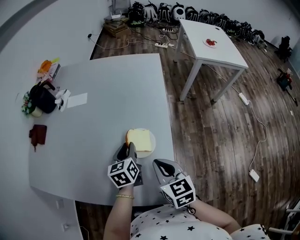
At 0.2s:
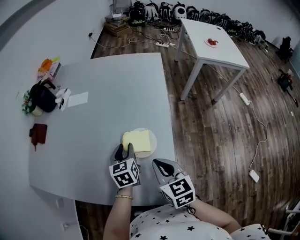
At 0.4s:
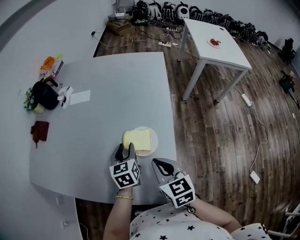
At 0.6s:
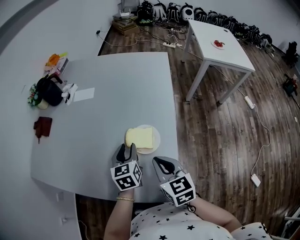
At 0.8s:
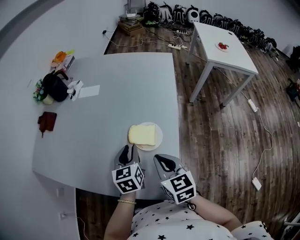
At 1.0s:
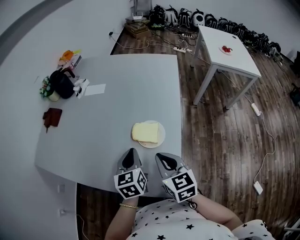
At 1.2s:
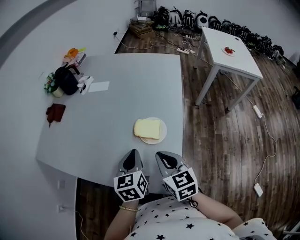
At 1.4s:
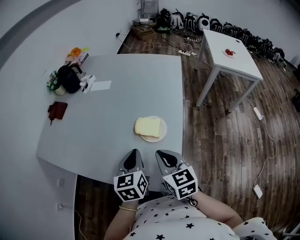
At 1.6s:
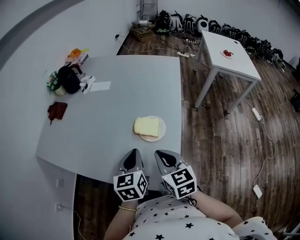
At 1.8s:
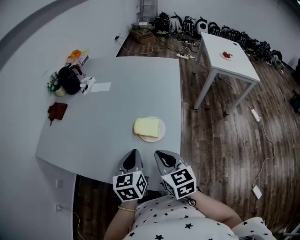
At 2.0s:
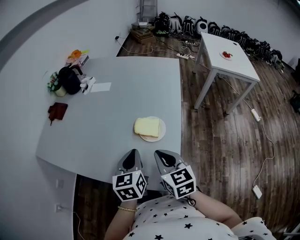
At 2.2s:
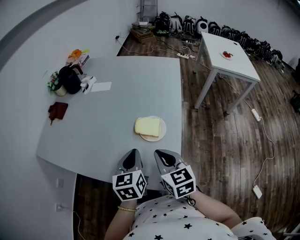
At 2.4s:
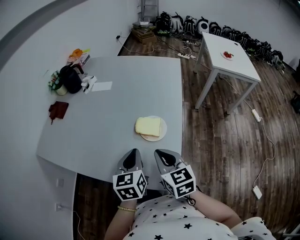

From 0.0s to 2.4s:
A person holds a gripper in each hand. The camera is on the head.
From 0.0s to 1.2s: The left gripper travels backward and upward by approximately 15 cm, and closes up.
From 1.2s to 2.4s: There are only small adjustments of the grippers.

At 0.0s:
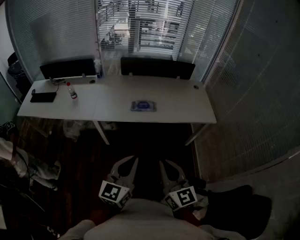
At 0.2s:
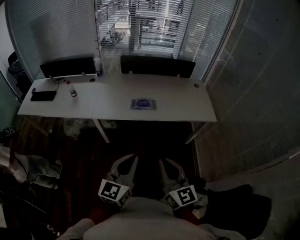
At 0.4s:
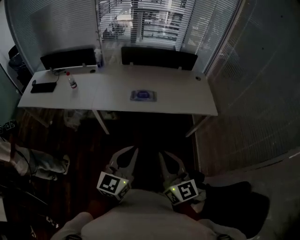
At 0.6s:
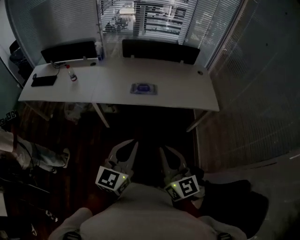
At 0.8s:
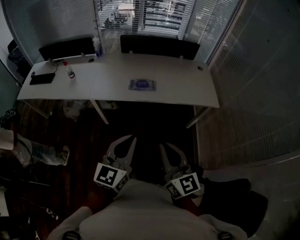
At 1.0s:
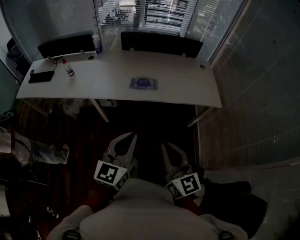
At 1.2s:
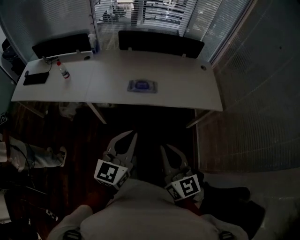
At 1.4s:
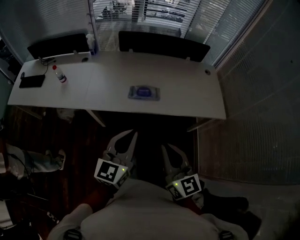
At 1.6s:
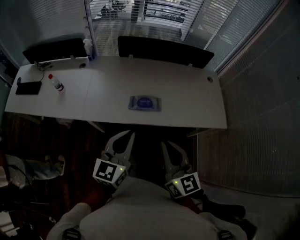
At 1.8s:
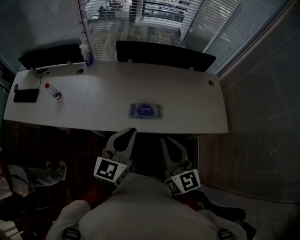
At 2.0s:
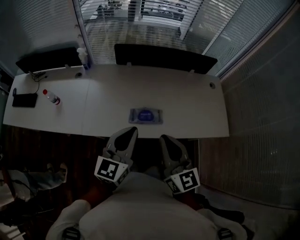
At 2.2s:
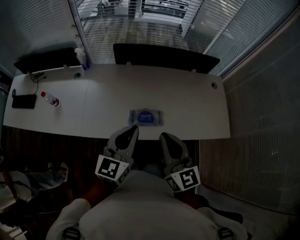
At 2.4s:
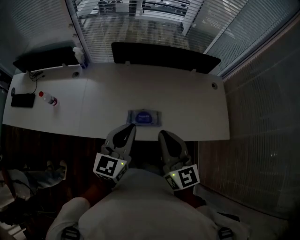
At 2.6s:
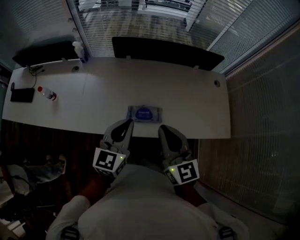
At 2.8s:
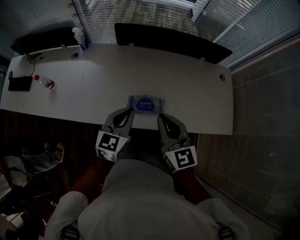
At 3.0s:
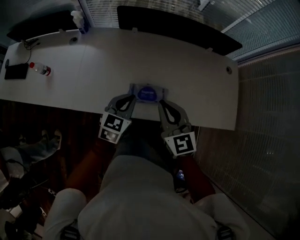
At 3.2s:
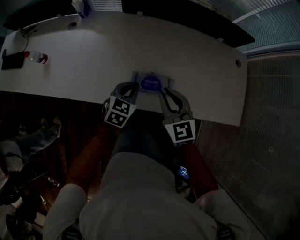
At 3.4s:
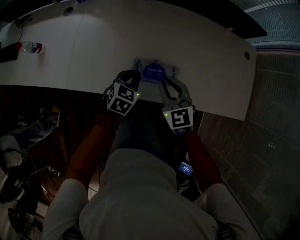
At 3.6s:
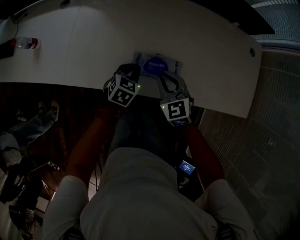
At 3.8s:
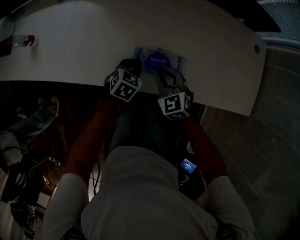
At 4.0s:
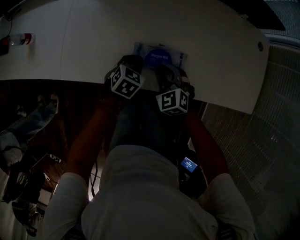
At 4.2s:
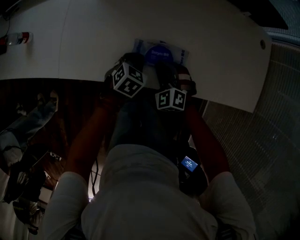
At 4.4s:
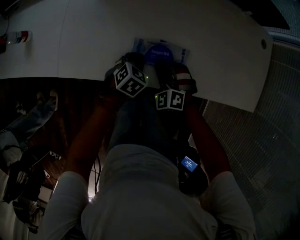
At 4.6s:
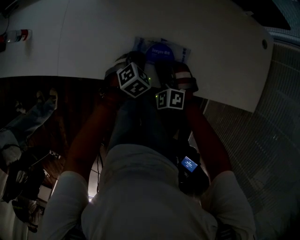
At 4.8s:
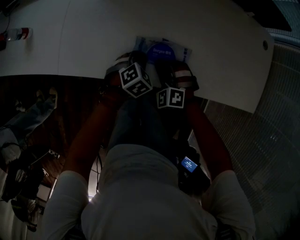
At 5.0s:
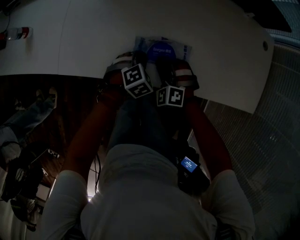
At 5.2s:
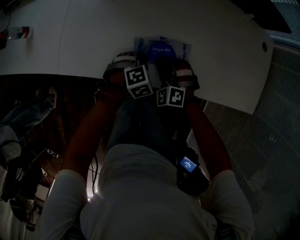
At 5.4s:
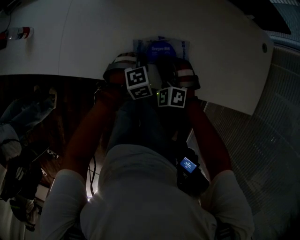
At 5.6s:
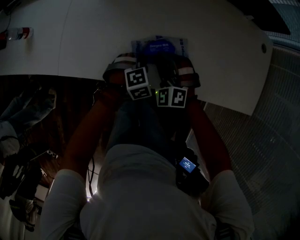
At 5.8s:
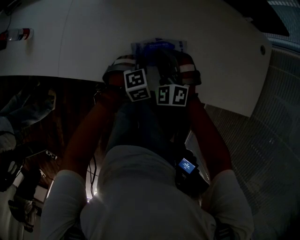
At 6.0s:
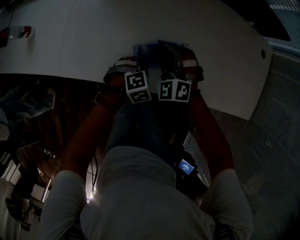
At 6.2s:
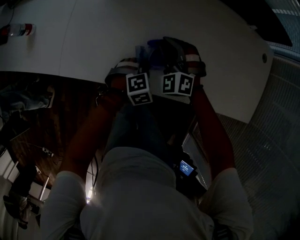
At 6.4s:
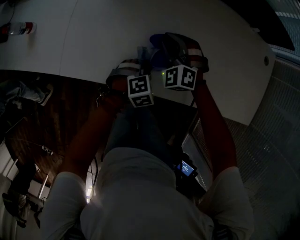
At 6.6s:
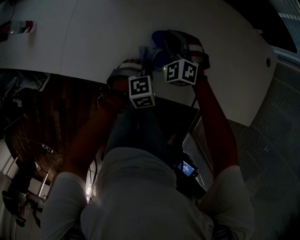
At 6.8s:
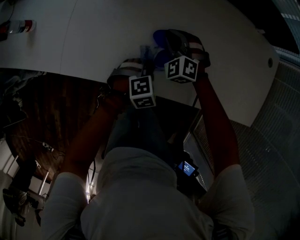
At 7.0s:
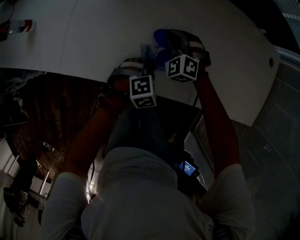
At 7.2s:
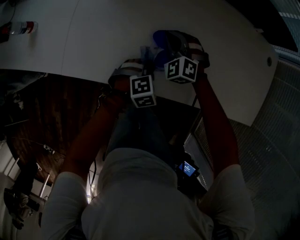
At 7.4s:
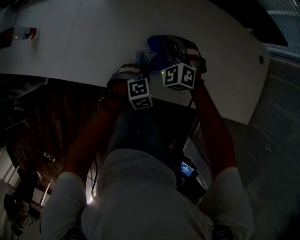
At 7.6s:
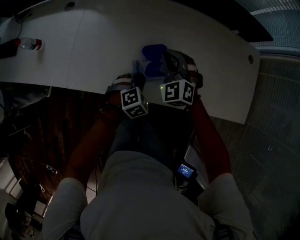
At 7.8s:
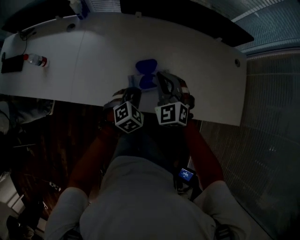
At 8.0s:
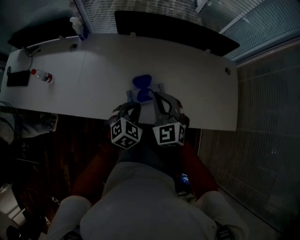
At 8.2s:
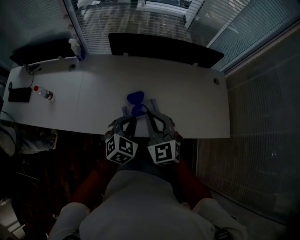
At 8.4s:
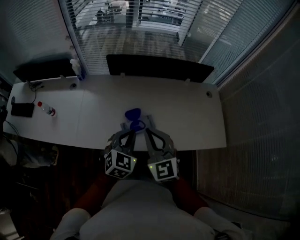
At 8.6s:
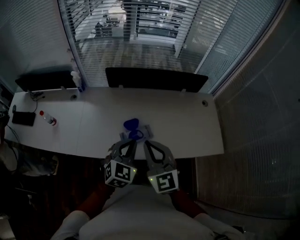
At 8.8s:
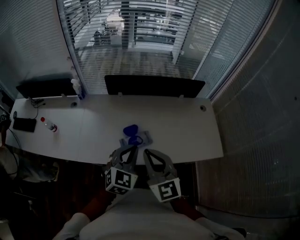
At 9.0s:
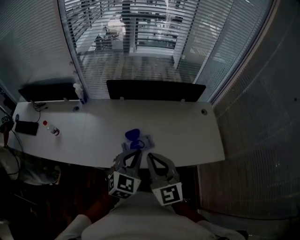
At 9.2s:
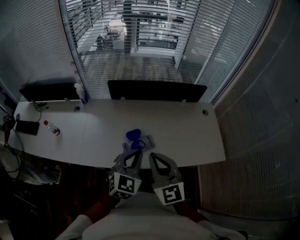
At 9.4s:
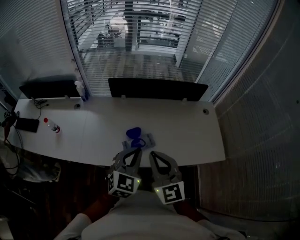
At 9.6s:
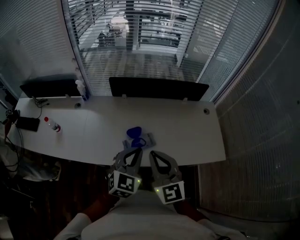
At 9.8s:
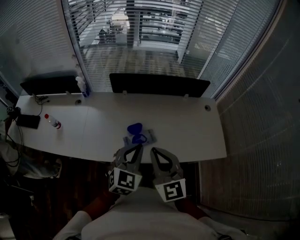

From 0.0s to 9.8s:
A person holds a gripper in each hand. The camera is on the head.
From 0.0s to 1.4s: The grippers both shift forward by roughly 20 cm.
From 1.4s to 2.8s: The two grippers go approximately 30 cm forward.
From 2.8s to 4.2s: The two grippers go about 35 cm downward. The left gripper tilts its fingers some 40 degrees downward, while the right gripper angles its fingers downward, by some 30 degrees.
From 4.2s to 5.6s: The left gripper turns by approximately 40 degrees.
From 5.6s to 7.0s: The right gripper is displaced forward and downward by about 10 cm.
From 7.0s to 8.4s: The right gripper travels upward and backward by roughly 40 cm, and rotates some 40 degrees, while the left gripper shifts about 35 cm upward, and angles its fingers upward, by some 30 degrees.
From 8.4s to 9.8s: Both grippers travel together upward, approximately 5 cm.

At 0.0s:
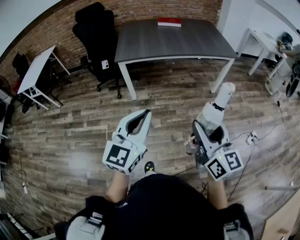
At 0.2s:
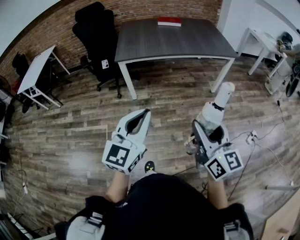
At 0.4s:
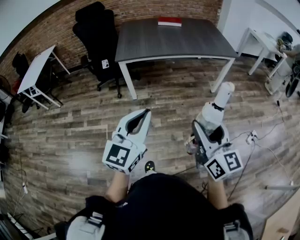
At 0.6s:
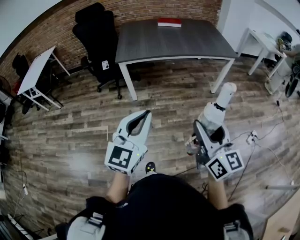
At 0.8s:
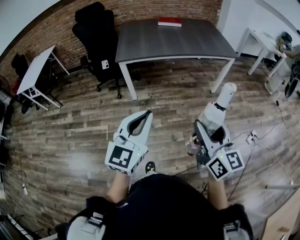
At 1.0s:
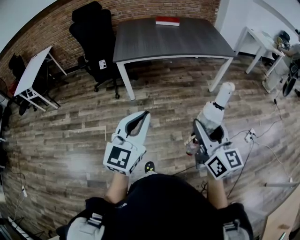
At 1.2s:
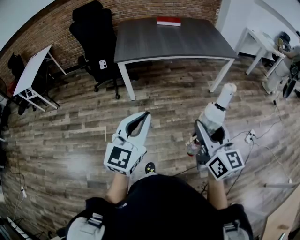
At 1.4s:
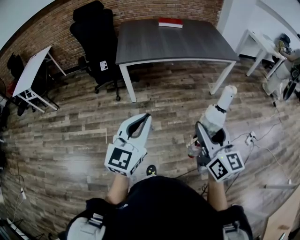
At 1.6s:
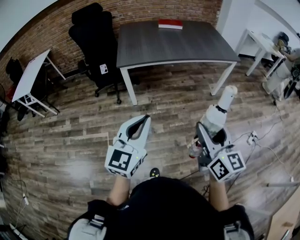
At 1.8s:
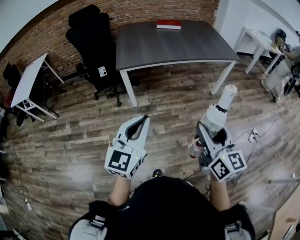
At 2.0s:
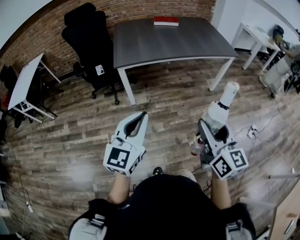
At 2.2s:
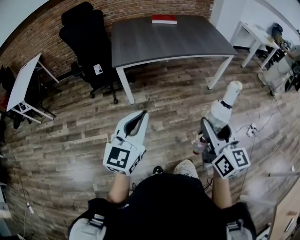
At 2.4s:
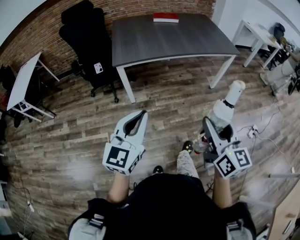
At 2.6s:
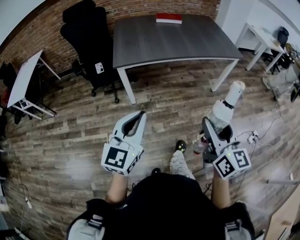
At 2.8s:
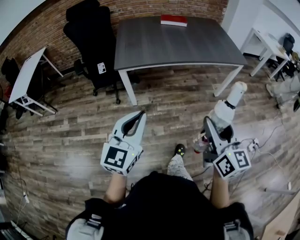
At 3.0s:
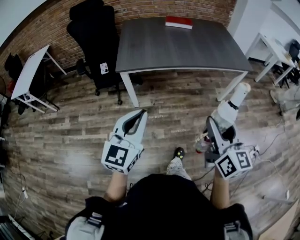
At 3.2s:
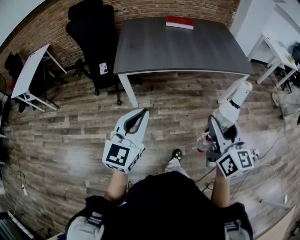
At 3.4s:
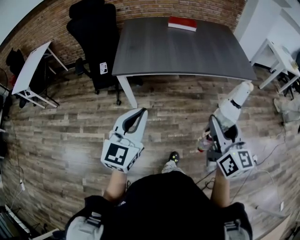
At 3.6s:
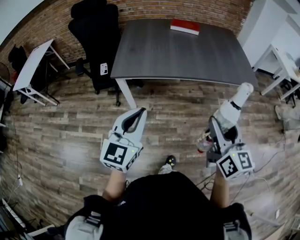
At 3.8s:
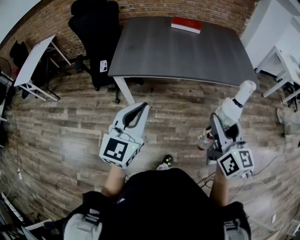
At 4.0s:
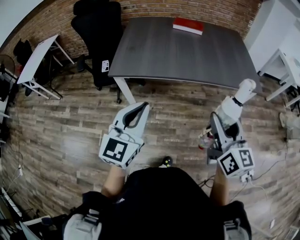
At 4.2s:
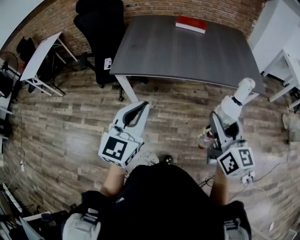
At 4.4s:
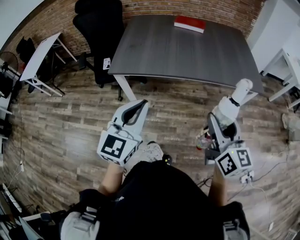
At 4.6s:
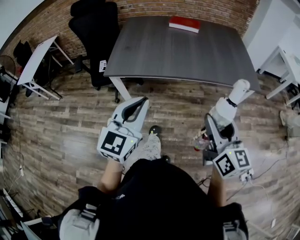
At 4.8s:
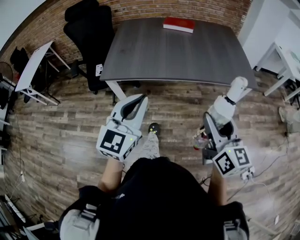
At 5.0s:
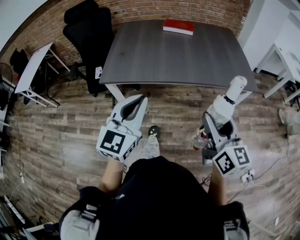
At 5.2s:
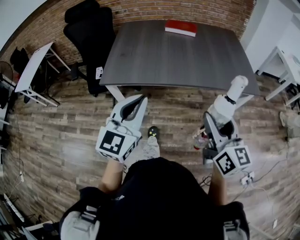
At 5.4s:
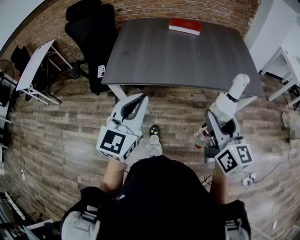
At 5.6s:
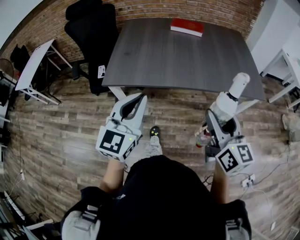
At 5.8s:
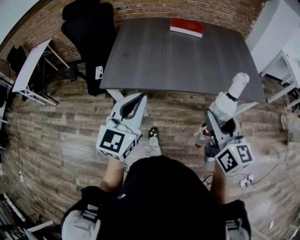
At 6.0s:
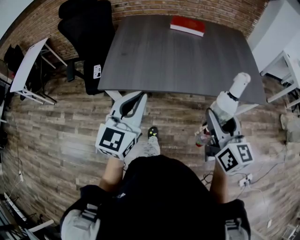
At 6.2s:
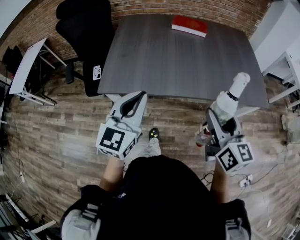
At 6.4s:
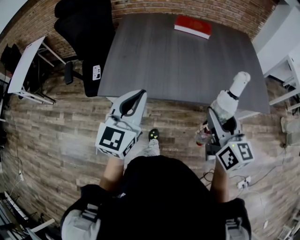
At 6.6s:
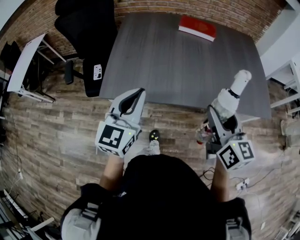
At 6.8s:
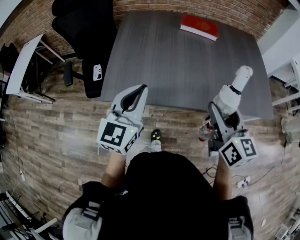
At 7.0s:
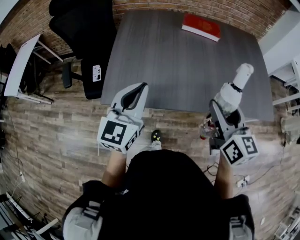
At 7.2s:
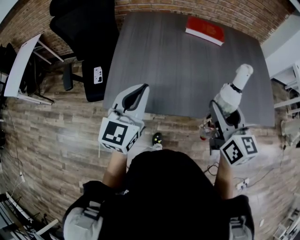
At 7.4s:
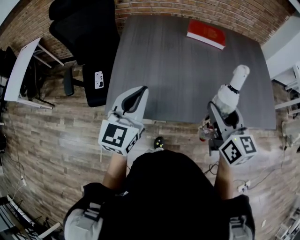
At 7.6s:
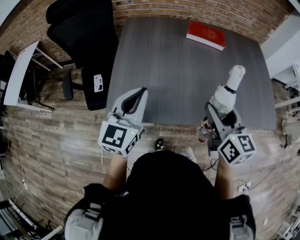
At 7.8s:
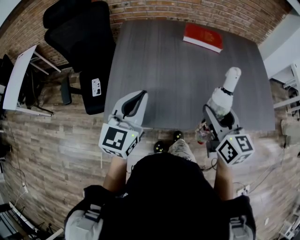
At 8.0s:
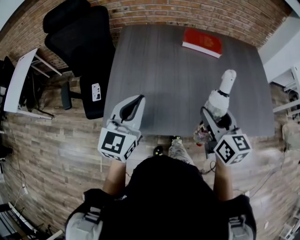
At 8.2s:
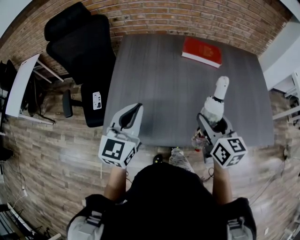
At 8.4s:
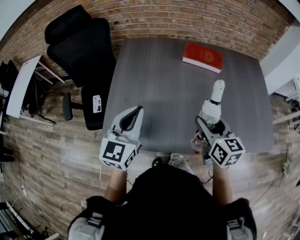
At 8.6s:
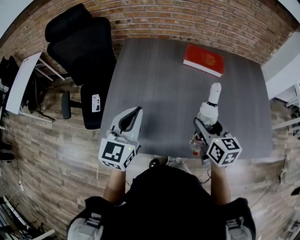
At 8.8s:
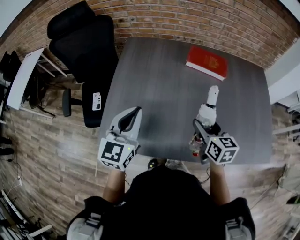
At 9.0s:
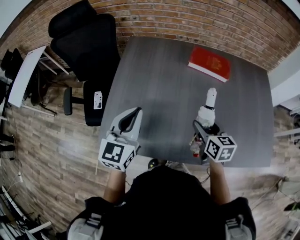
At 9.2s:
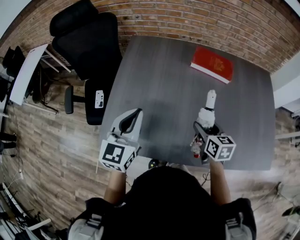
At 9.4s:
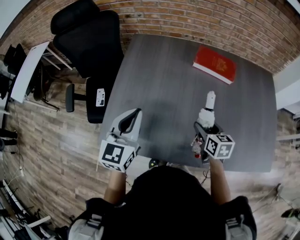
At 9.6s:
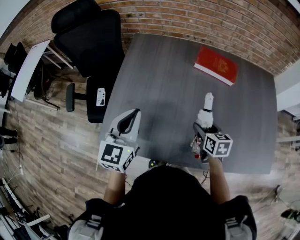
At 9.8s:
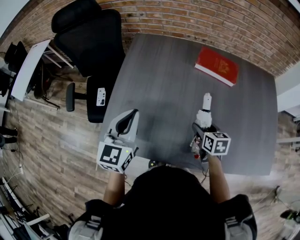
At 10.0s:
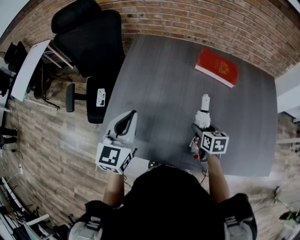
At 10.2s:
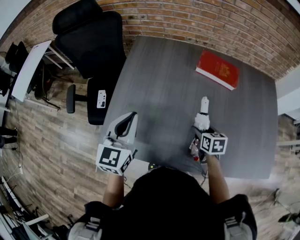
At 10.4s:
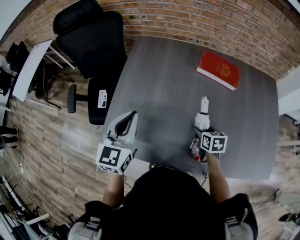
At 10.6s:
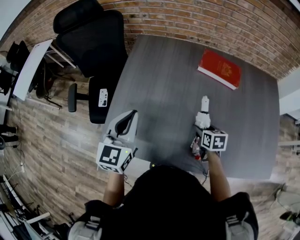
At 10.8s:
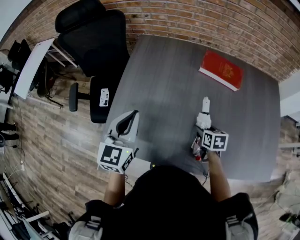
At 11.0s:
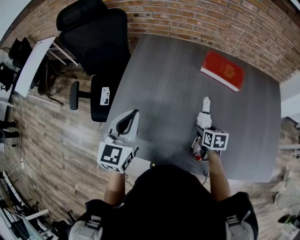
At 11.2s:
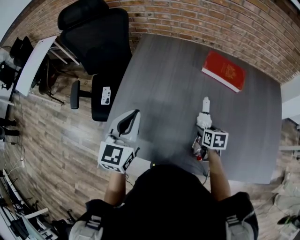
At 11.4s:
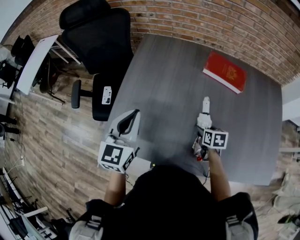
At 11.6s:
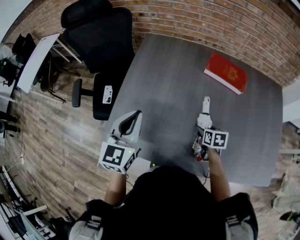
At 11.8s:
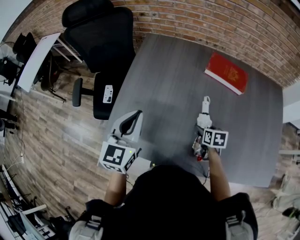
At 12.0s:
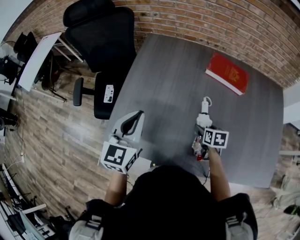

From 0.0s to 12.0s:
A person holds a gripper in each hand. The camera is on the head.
From 0.0s to 1.6s: The two grippers go approximately 10 cm to the left.
From 1.6s to 3.0s: The two grippers go approximately 15 cm forward.
From 3.0s to 4.4s: The two grippers go roughly 25 cm forward and to the right.
From 4.4s to 6.0s: Both grippers travel together forward, about 15 cm.
From 6.0s to 7.6s: Both grippers move forward and to the left, approximately 30 cm.
From 7.6s to 9.0s: The right gripper goes about 20 cm forward and downward, and swivels about 20 degrees. Meanwhile the left gripper shifts approximately 10 cm forward.
From 9.0s to 10.4s: The right gripper travels downward by some 10 cm.
From 10.4s to 12.0s: The grippers make only small movements.
